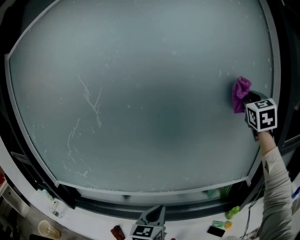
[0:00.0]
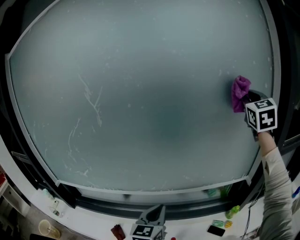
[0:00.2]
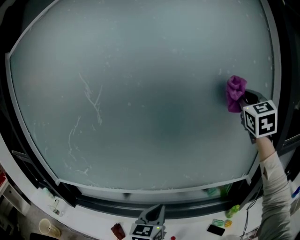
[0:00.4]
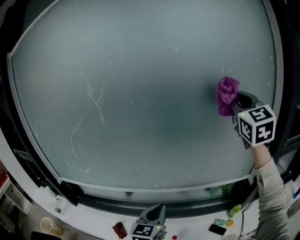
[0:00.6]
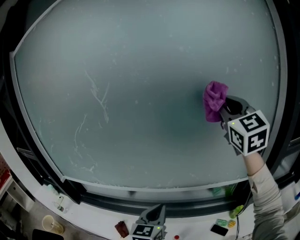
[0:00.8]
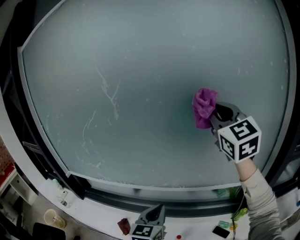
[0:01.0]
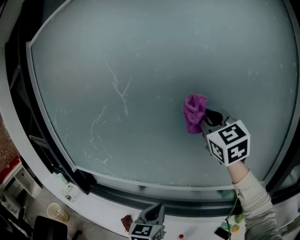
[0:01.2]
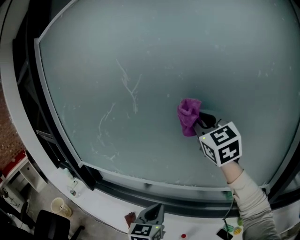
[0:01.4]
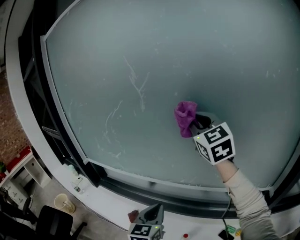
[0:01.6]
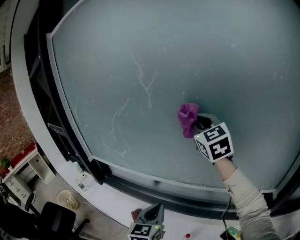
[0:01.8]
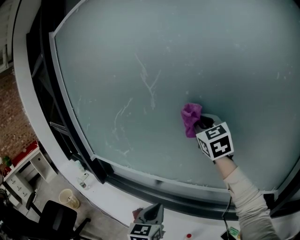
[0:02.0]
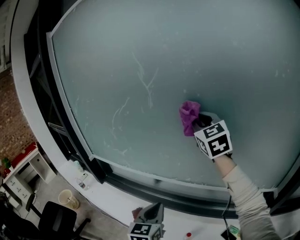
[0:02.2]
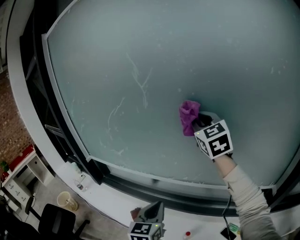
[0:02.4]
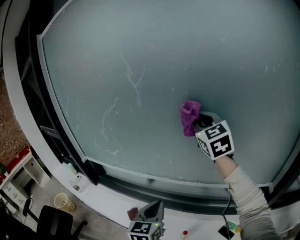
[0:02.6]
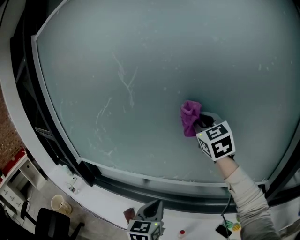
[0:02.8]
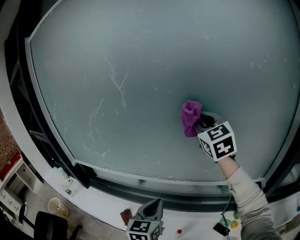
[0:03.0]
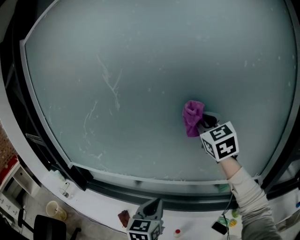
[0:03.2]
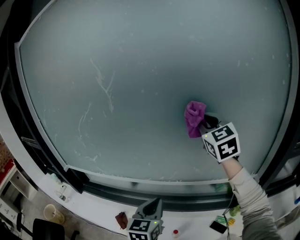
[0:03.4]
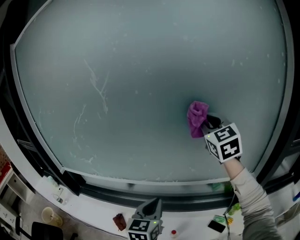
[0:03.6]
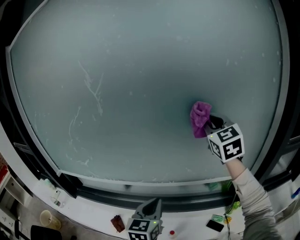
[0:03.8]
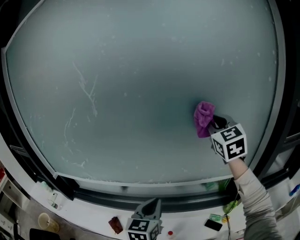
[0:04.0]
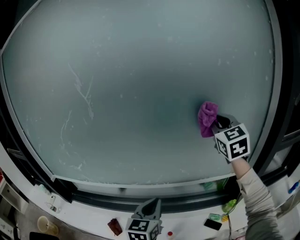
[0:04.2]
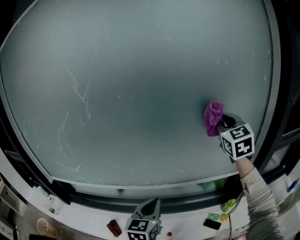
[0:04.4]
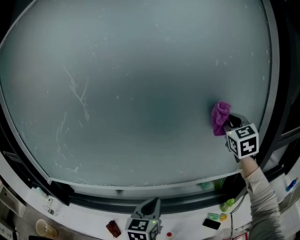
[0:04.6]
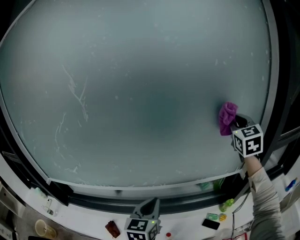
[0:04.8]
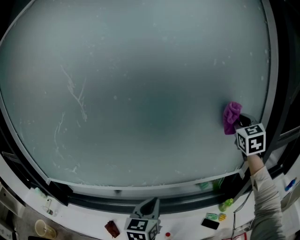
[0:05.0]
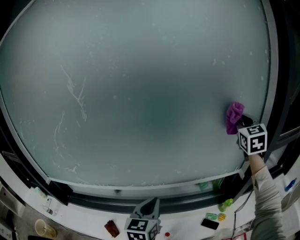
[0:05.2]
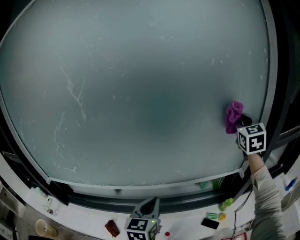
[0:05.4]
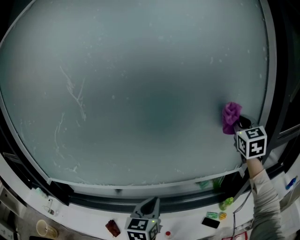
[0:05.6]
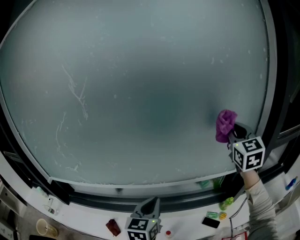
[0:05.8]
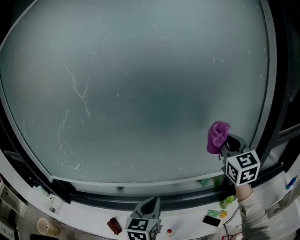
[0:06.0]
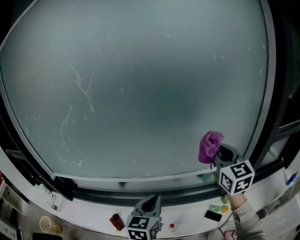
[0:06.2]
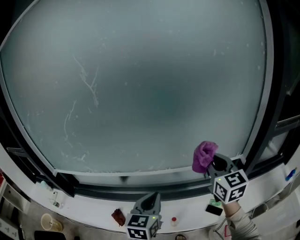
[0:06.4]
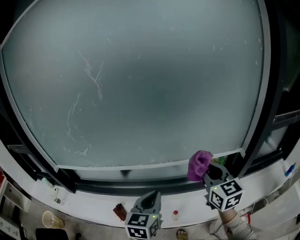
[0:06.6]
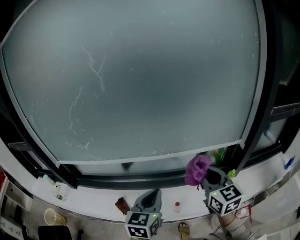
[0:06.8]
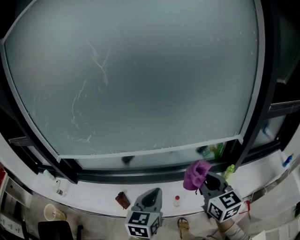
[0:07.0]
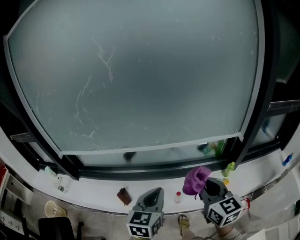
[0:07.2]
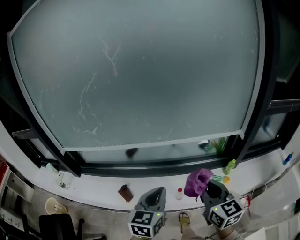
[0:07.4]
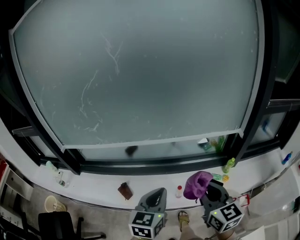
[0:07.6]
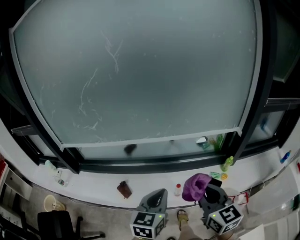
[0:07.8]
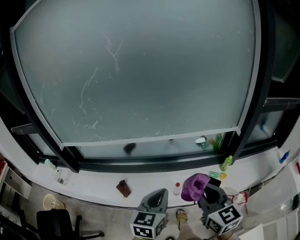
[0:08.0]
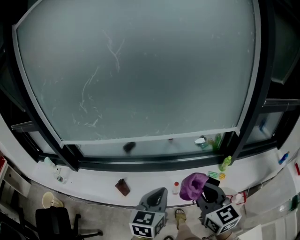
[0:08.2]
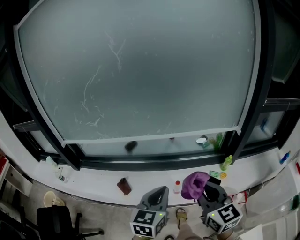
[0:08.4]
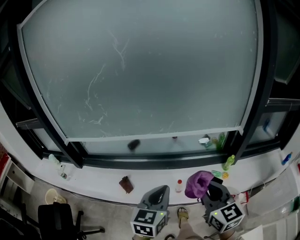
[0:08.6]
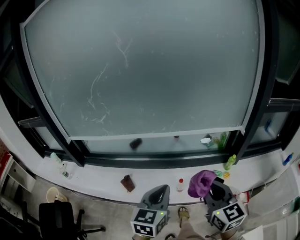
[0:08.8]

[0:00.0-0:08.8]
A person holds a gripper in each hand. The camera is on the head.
0:00.0 to 0:01.4: The right gripper shifts by some 35 cm, and changes its angle by roughly 40 degrees, while the left gripper changes place by roughly 10 cm.
0:01.4 to 0:03.0: The right gripper shifts roughly 10 cm downward and to the right.
0:03.0 to 0:04.4: The right gripper travels to the right by approximately 20 cm, and rotates about 20 degrees. The left gripper heads to the right, covering roughly 5 cm.
0:04.4 to 0:05.8: The right gripper travels to the right by roughly 5 cm.
0:05.8 to 0:07.4: The right gripper is displaced backward, to the left and downward by approximately 50 cm, and changes its angle by roughly 30 degrees; the left gripper moves backward, about 20 cm.
0:07.4 to 0:08.8: The two grippers go roughly 10 cm backward.

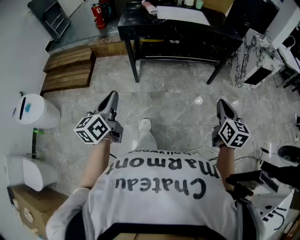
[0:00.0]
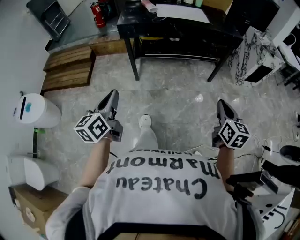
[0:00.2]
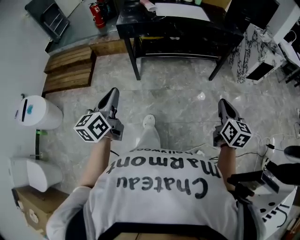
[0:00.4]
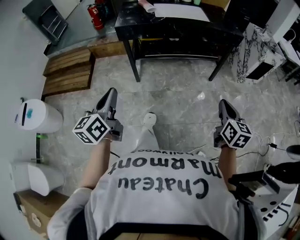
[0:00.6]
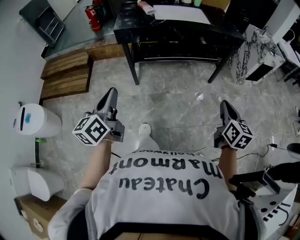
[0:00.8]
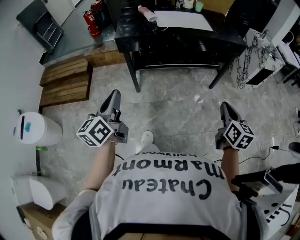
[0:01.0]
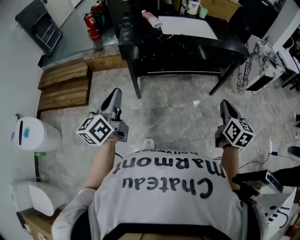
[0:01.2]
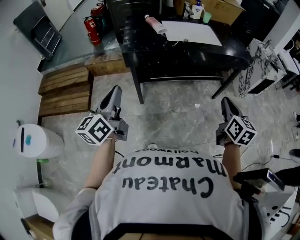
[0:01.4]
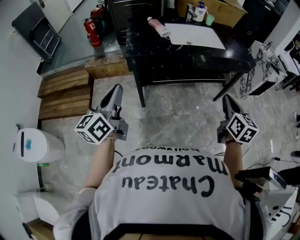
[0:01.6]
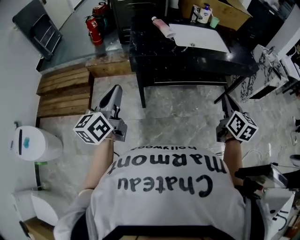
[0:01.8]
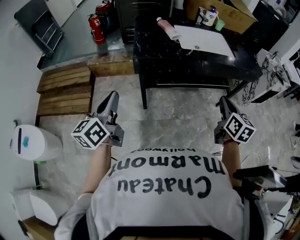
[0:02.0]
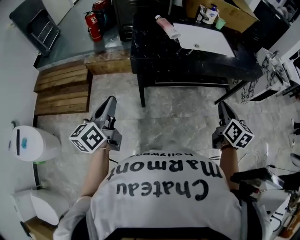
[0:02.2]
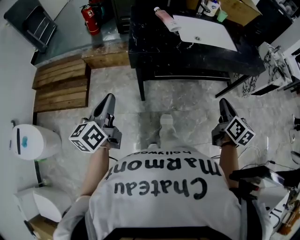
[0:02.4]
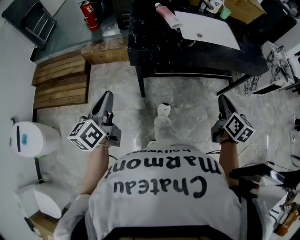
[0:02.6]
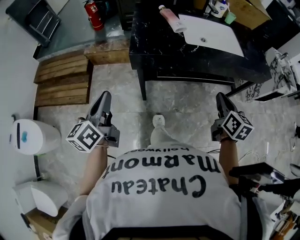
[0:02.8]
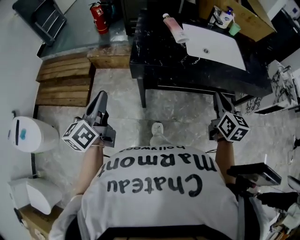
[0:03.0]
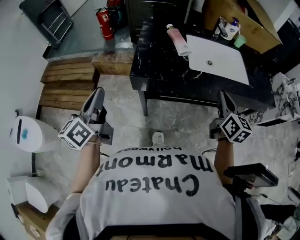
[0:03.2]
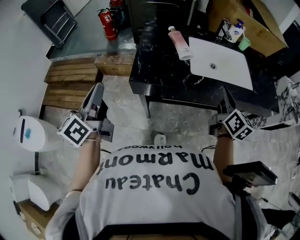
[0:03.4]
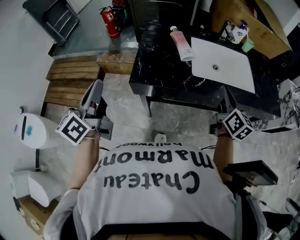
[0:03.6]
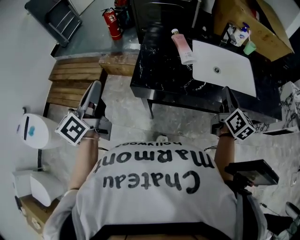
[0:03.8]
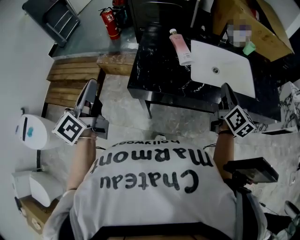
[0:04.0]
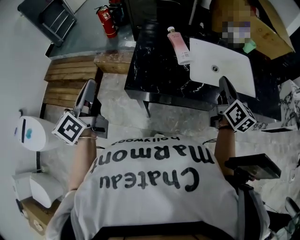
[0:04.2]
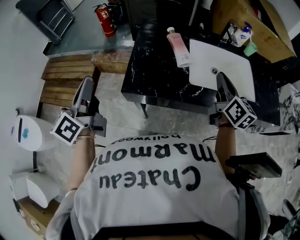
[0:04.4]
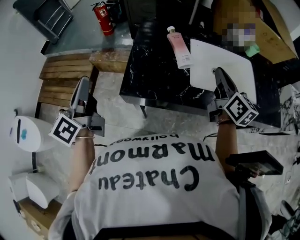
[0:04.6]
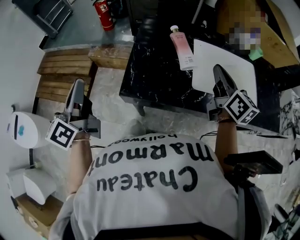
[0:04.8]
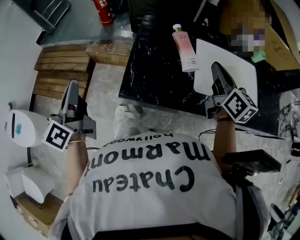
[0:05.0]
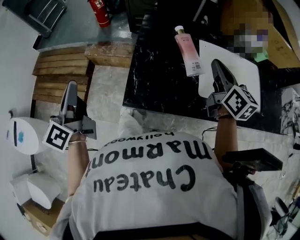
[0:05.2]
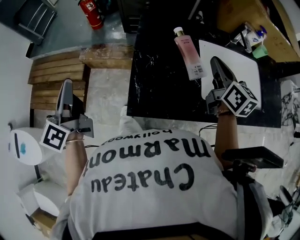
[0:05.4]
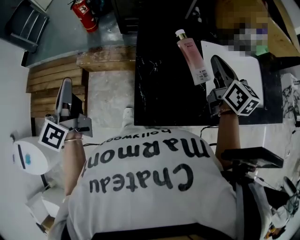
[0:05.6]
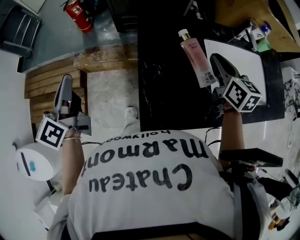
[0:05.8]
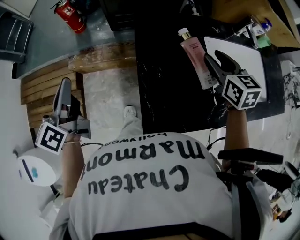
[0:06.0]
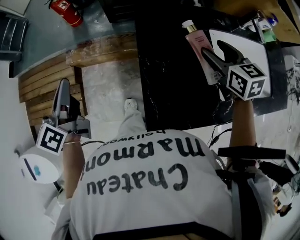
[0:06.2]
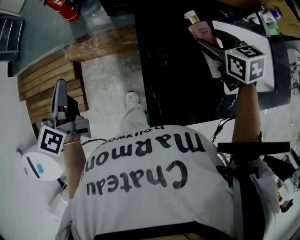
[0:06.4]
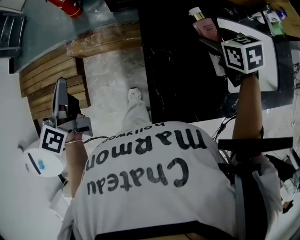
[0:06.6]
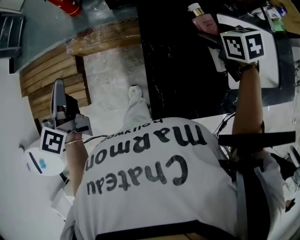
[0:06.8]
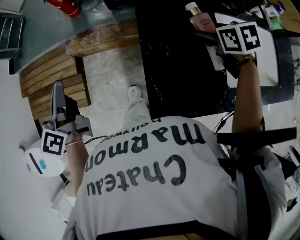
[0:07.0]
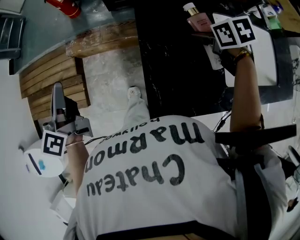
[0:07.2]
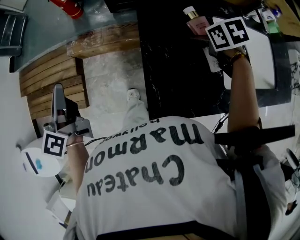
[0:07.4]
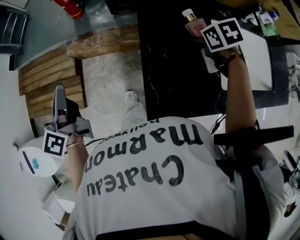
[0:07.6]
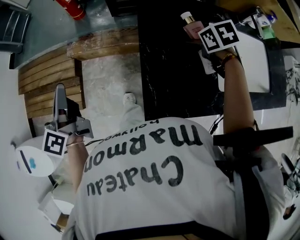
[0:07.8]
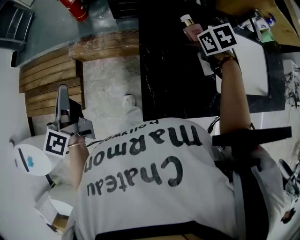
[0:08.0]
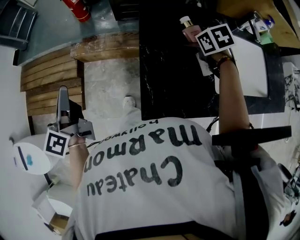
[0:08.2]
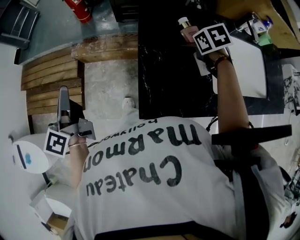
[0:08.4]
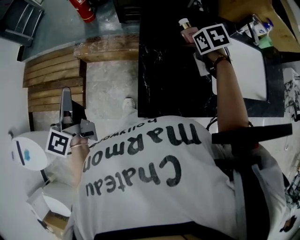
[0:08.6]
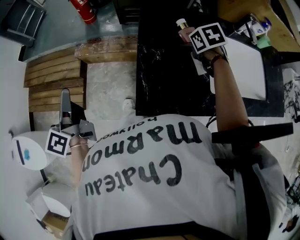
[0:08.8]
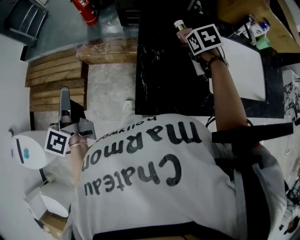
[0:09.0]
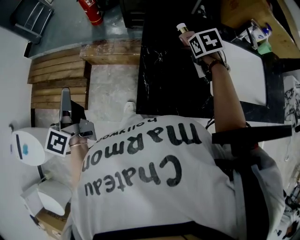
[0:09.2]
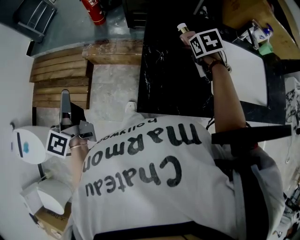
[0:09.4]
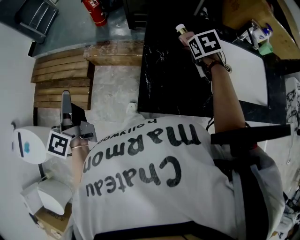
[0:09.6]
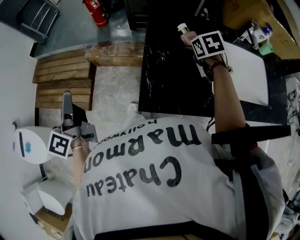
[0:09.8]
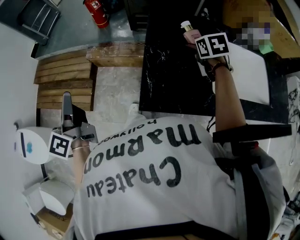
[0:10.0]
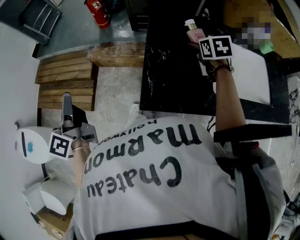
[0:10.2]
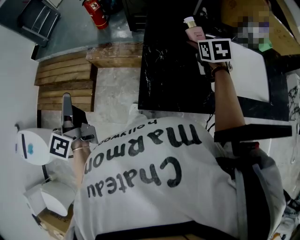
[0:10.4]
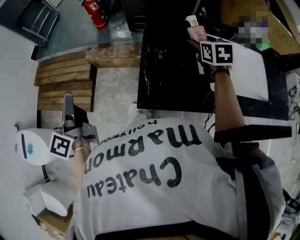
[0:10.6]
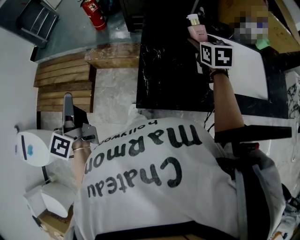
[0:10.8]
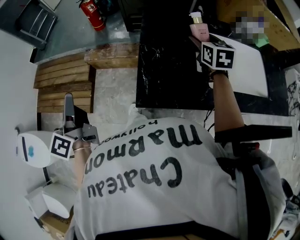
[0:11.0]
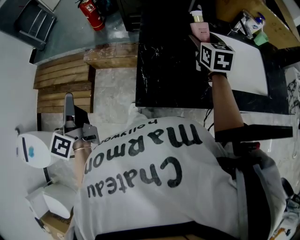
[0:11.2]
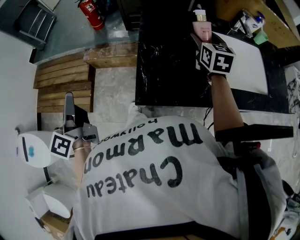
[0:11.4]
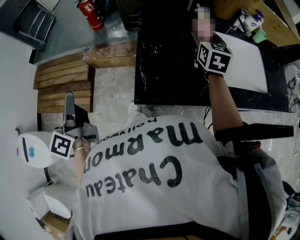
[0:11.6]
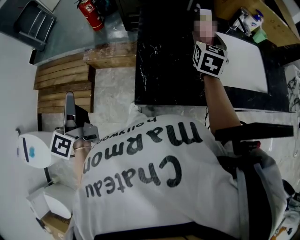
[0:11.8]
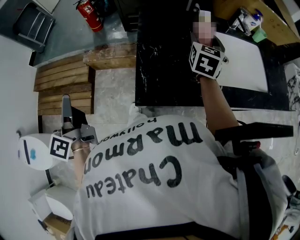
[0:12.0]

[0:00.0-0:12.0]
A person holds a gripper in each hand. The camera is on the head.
0:00.0 to 0:01.6: The two grippers go about 30 cm forward and to the left.
0:01.6 to 0:03.0: The right gripper moves forward and to the left, roughly 20 cm, while the left gripper goes roughly 15 cm forward, to the left and downward.
0:03.0 to 0:04.4: The left gripper heads forward and upward, covering some 20 cm; the right gripper heads forward, covering about 25 cm.
0:04.4 to 0:06.0: Both grippers move forward and to the left, approximately 25 cm. The right gripper swivels about 30 degrees, and opens up.
0:06.0 to 0:07.6: The right gripper shifts about 10 cm downward, tilts its fingers approximately 40 degrees downward, and opens, while the left gripper changes place by approximately 5 cm.
0:07.6 to 0:09.0: The left gripper heads backward, covering approximately 10 cm.
0:09.0 to 0:10.4: The left gripper heads backward, covering some 5 cm. The right gripper moves approximately 5 cm, and swivels approximately 20 degrees.
0:10.4 to 0:12.0: The right gripper shifts about 5 cm upward, and rotates about 40 degrees.

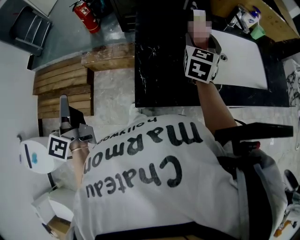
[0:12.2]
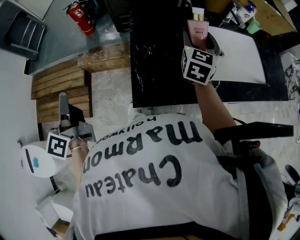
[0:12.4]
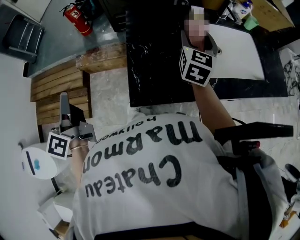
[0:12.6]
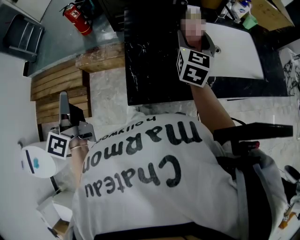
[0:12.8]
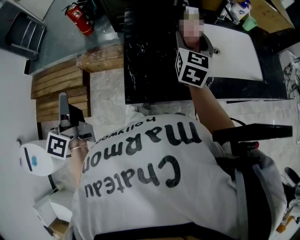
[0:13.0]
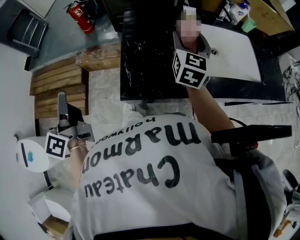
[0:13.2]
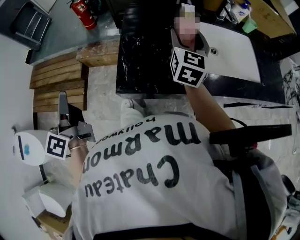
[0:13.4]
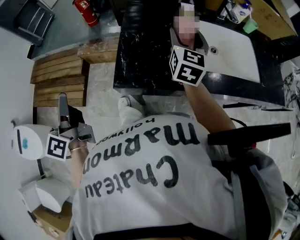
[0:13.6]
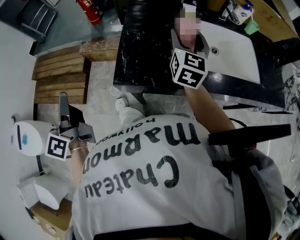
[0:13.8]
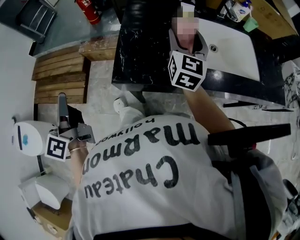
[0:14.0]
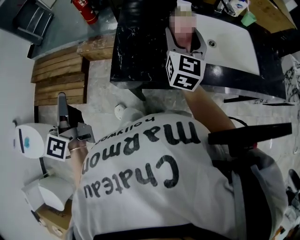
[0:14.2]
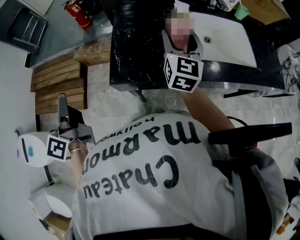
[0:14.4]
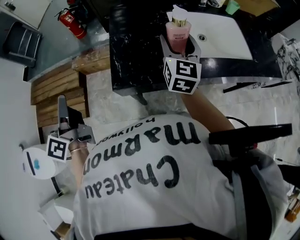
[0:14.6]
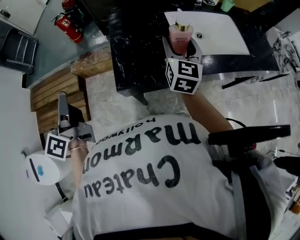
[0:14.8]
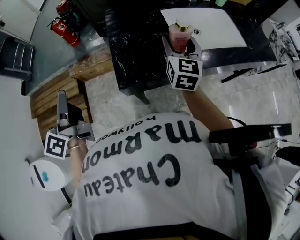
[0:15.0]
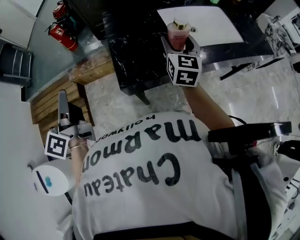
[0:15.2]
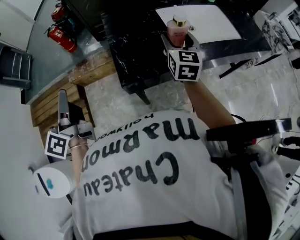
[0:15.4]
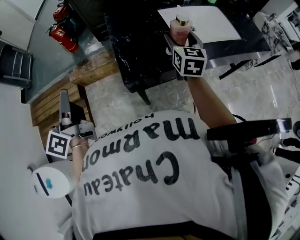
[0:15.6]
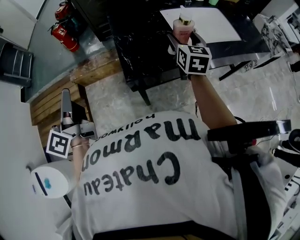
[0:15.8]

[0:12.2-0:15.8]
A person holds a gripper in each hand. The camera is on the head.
0:12.2 to 0:14.0: The left gripper is displaced backward and to the right by about 15 cm. The right gripper heads backward, covering some 10 cm, and turns by about 20 degrees.
0:14.0 to 0:15.8: The left gripper goes roughly 5 cm forward and to the left, and swivels roughly 20 degrees. Meanwhile the right gripper heads backward, covering about 5 cm.
